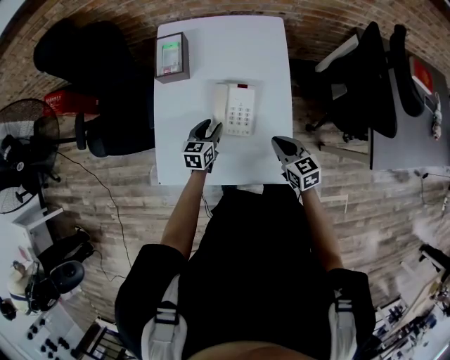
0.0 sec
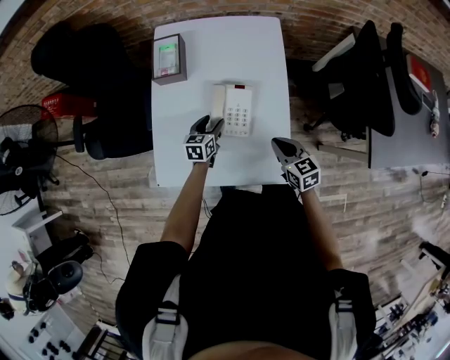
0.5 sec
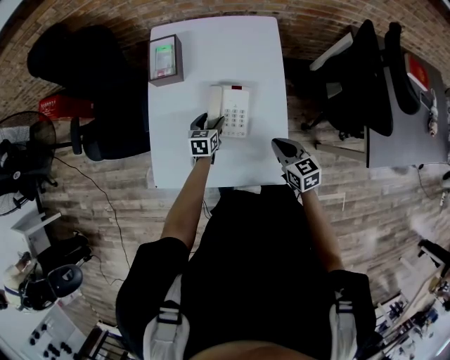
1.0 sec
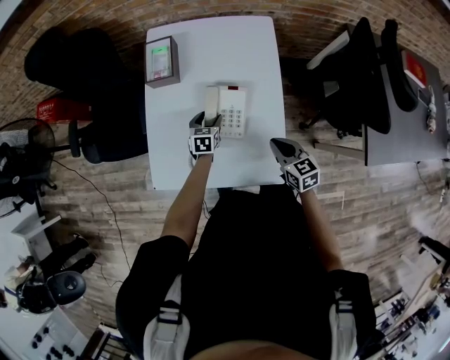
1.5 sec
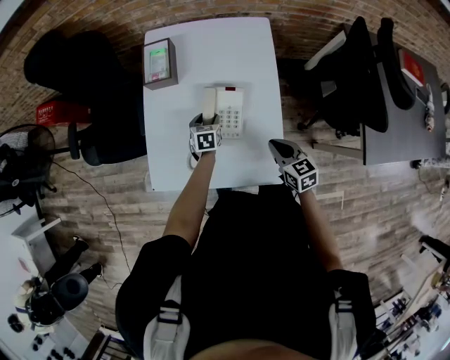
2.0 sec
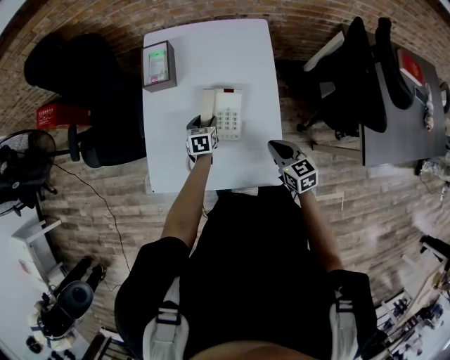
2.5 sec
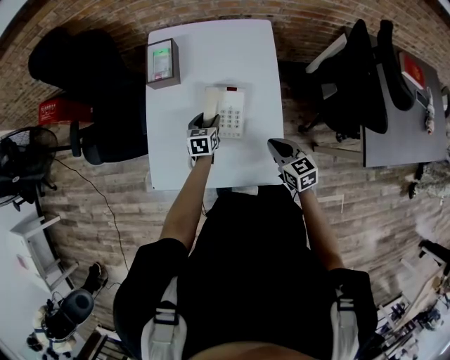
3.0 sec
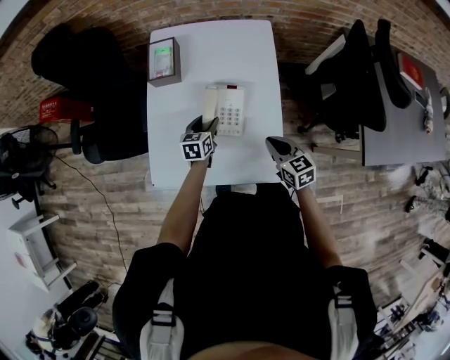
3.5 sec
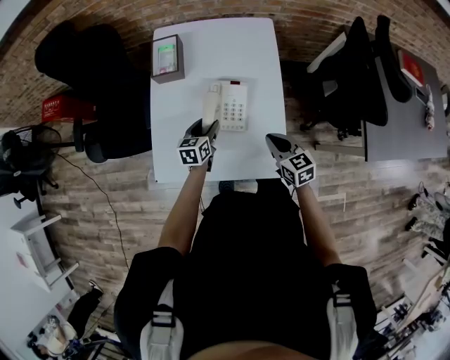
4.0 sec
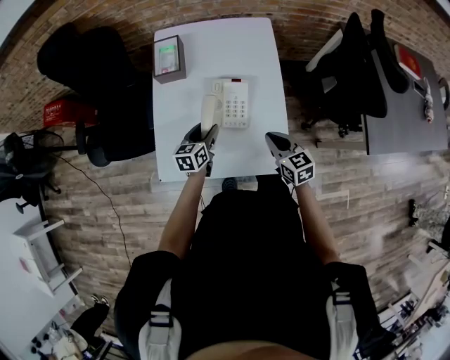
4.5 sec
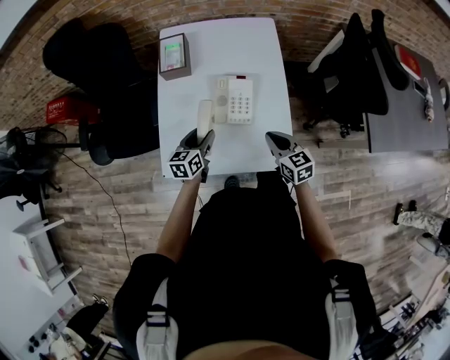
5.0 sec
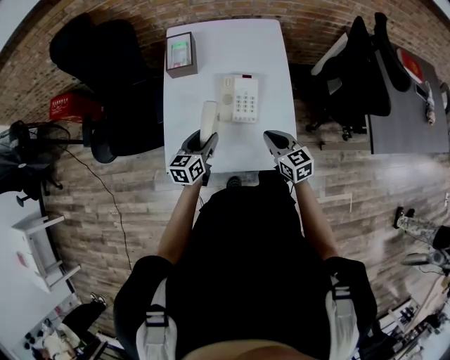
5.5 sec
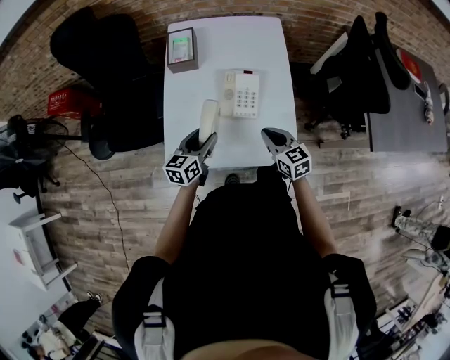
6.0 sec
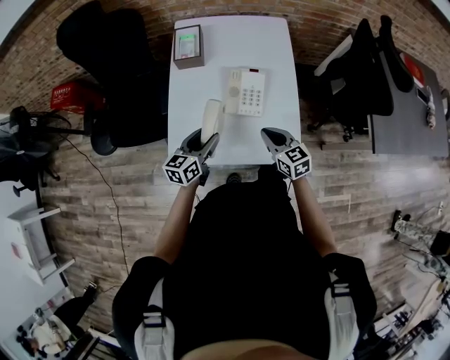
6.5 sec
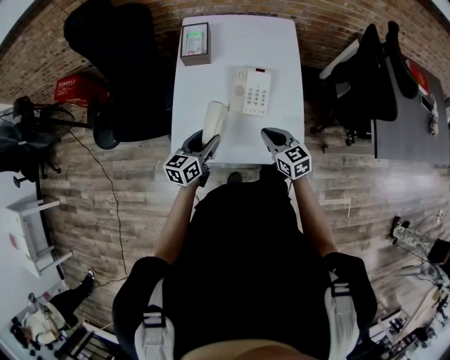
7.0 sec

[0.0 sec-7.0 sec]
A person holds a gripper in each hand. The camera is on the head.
0.0 sec to 2.0 sec: The left gripper is displaced downward by about 5 cm, and swivels approximately 20 degrees.
2.0 sec to 3.5 sec: The left gripper is displaced upward by some 5 cm.
3.5 sec to 5.0 sec: The left gripper shifts roughly 15 cm backward, to the left and upward. Meanwhile the right gripper is displaced to the left by some 5 cm.
5.0 sec to 7.0 sec: The left gripper travels backward by about 5 cm. Meanwhile the right gripper moves to the left, some 5 cm.

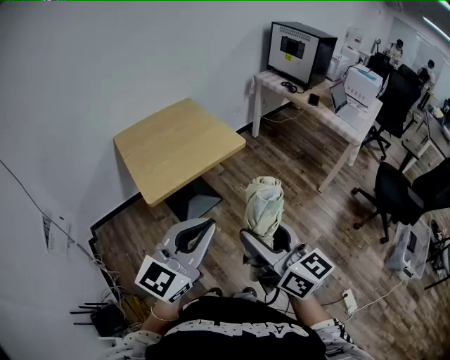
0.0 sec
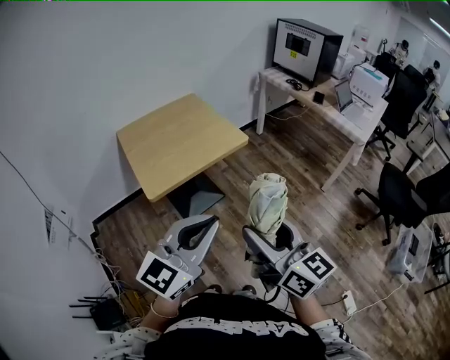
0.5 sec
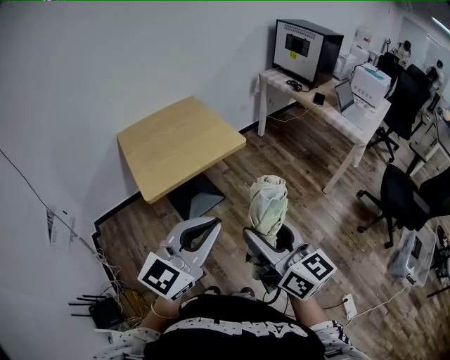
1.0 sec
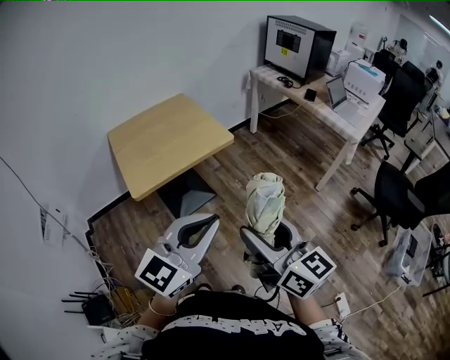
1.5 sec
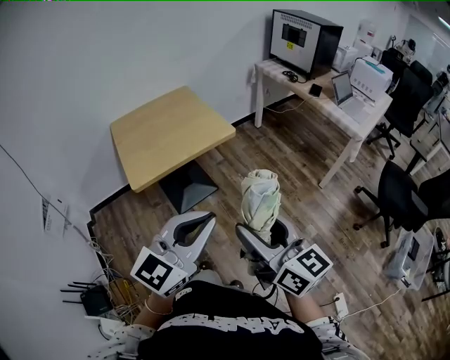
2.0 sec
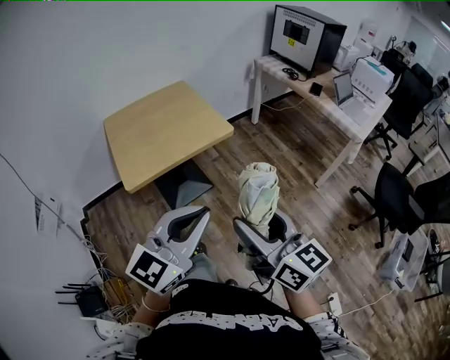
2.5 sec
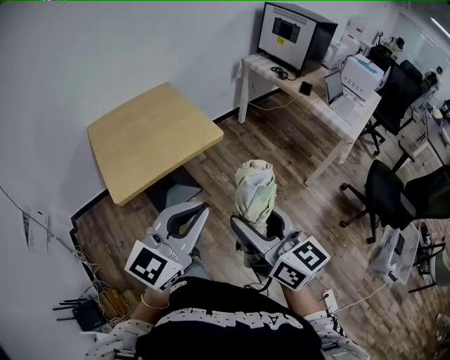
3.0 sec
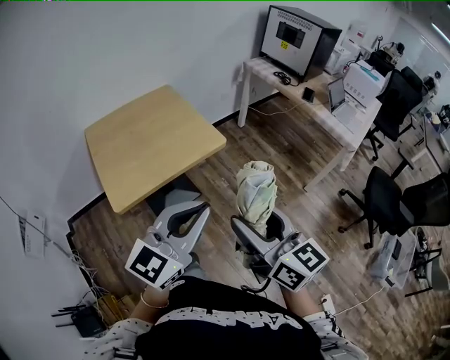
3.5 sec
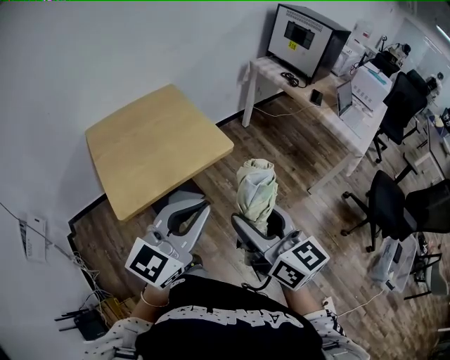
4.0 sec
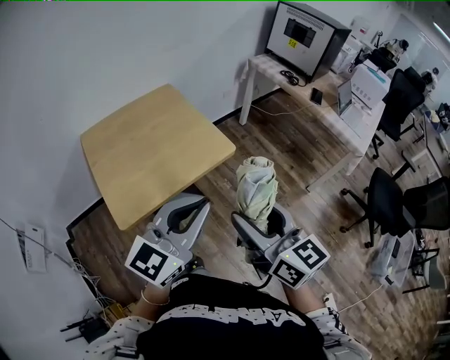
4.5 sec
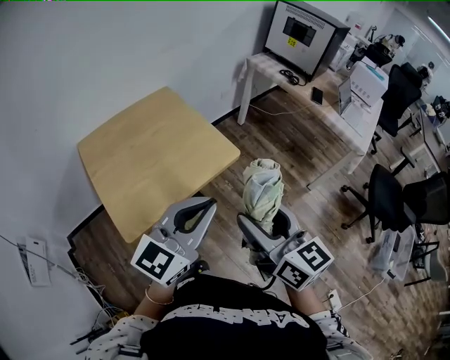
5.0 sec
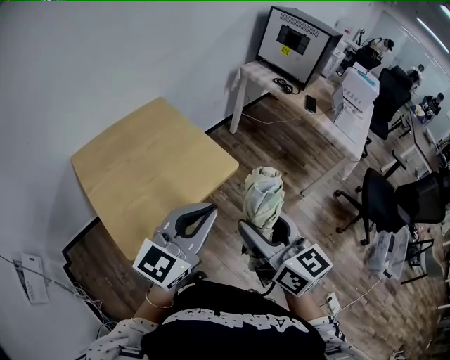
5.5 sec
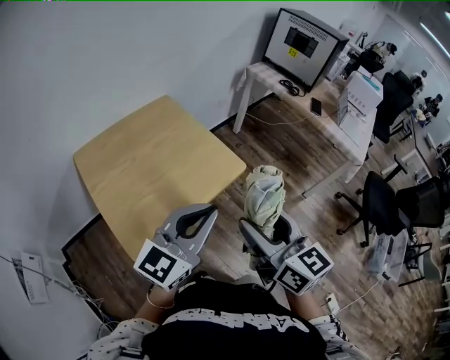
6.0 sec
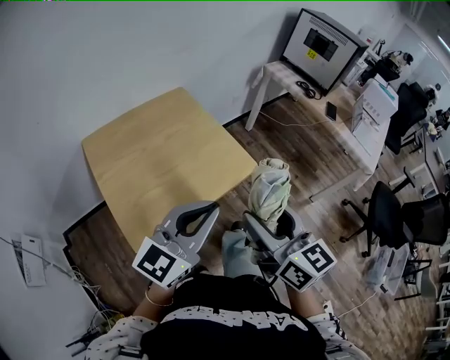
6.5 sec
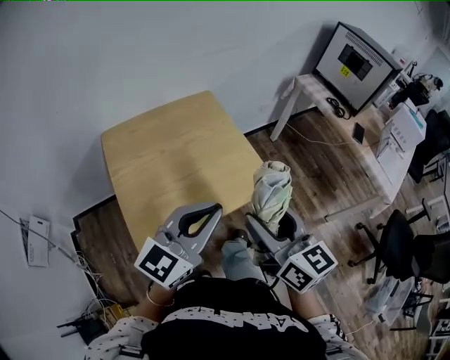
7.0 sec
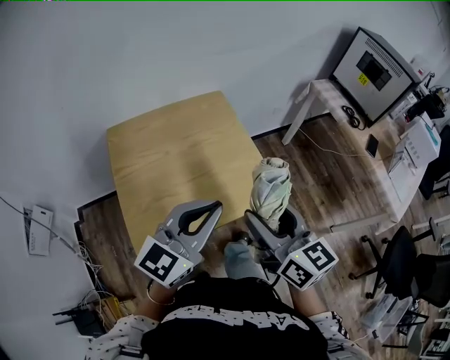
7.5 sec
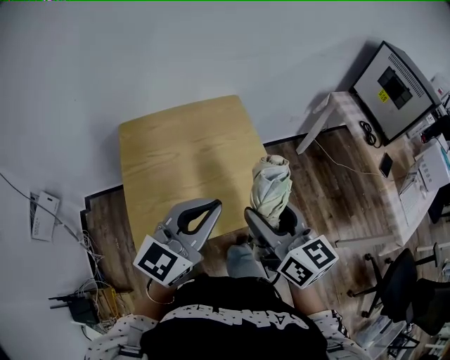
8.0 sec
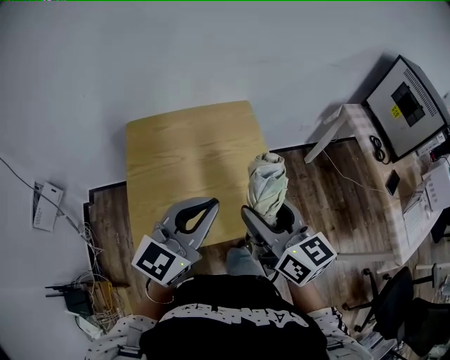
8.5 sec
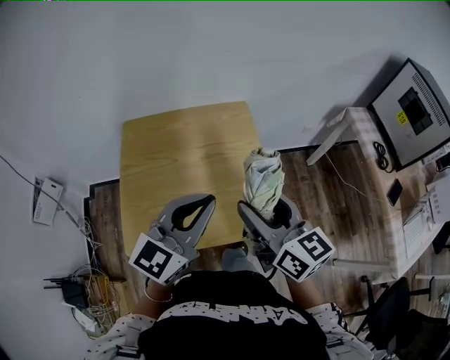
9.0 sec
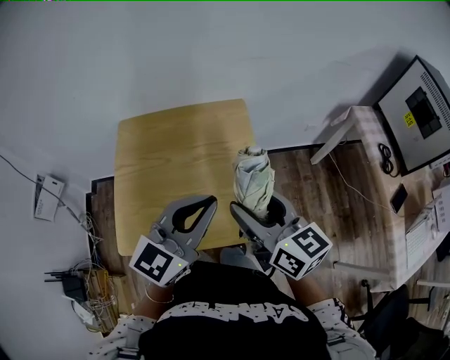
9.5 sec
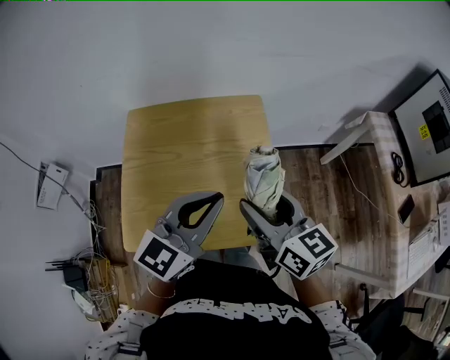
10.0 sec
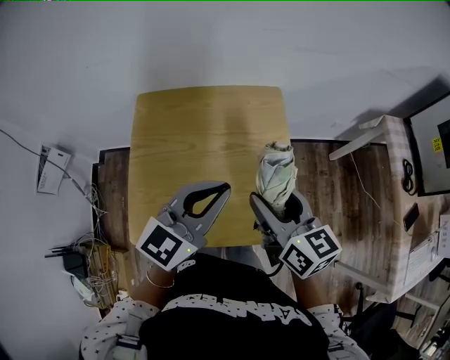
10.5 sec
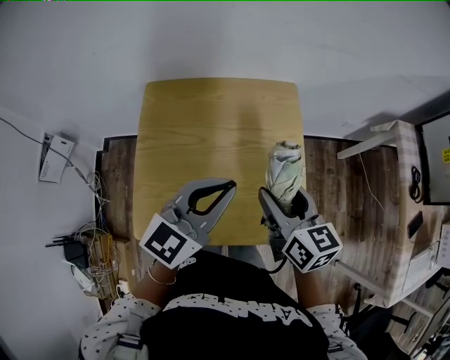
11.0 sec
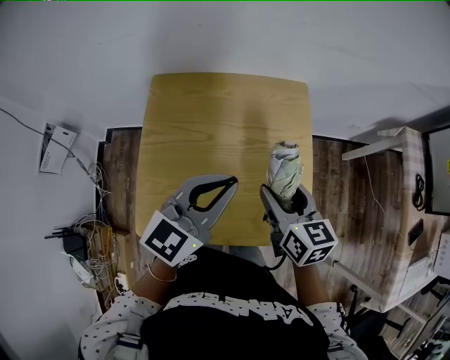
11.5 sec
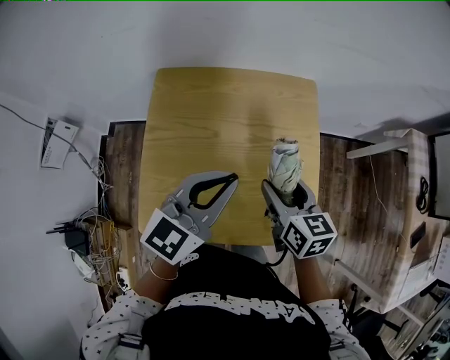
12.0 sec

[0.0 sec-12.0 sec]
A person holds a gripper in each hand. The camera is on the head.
0.0 sec to 2.0 sec: Both grippers move to the right, some 10 cm.
2.0 sec to 4.0 sec: Both grippers move forward, about 20 cm.
4.0 sec to 6.0 sec: The right gripper travels to the left and forward by about 15 cm. Meanwhile the left gripper goes approximately 15 cm forward and to the left.
6.0 sec to 8.0 sec: The two grippers go roughly 15 cm forward. The left gripper swivels roughly 20 degrees. The right gripper changes its angle by roughly 20 degrees.
8.0 sec to 10.0 sec: The left gripper moves forward and to the right, some 10 cm, while the right gripper heads forward, covering some 10 cm.
10.0 sec to 12.0 sec: The left gripper moves to the left, forward and downward, some 15 cm. The right gripper travels downward, to the left and forward by roughly 15 cm.

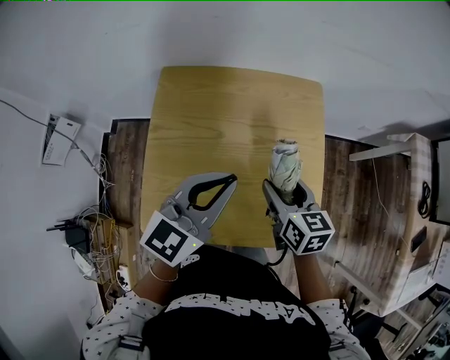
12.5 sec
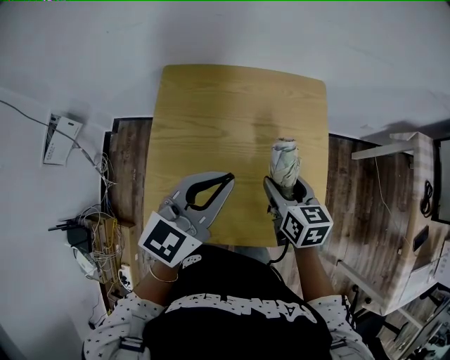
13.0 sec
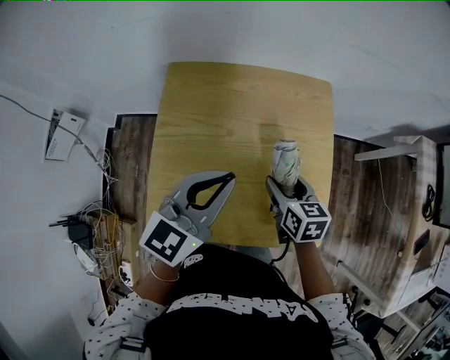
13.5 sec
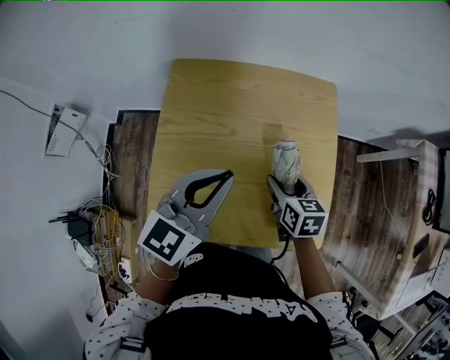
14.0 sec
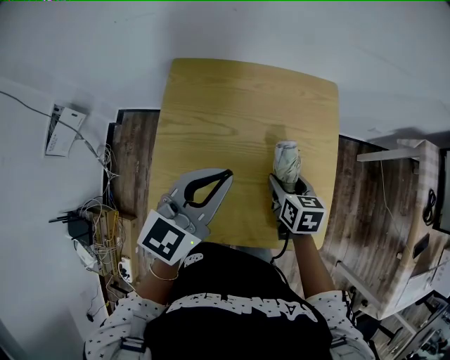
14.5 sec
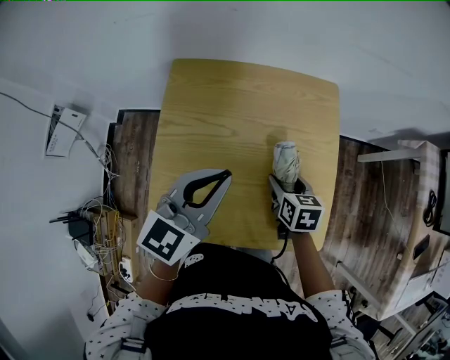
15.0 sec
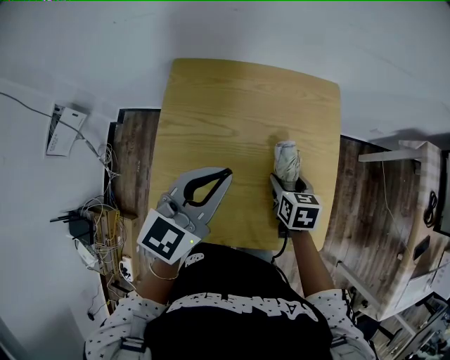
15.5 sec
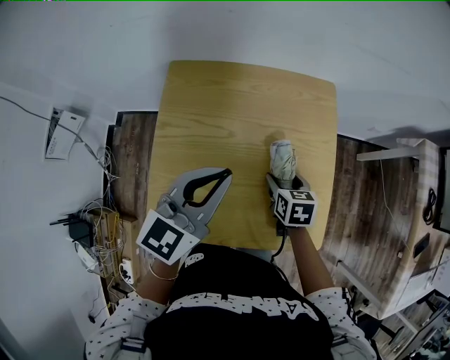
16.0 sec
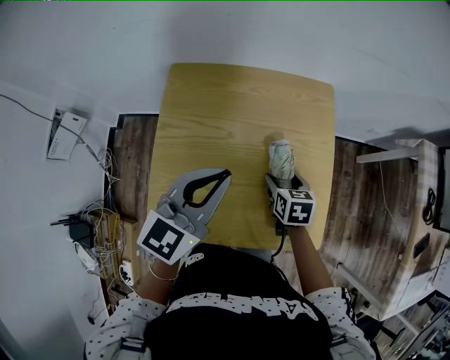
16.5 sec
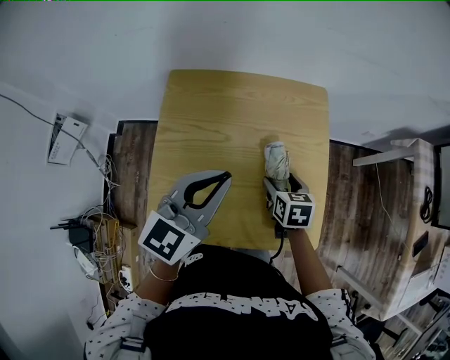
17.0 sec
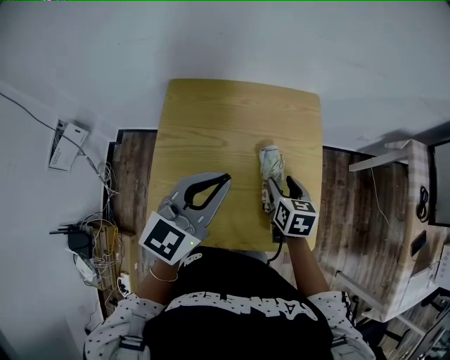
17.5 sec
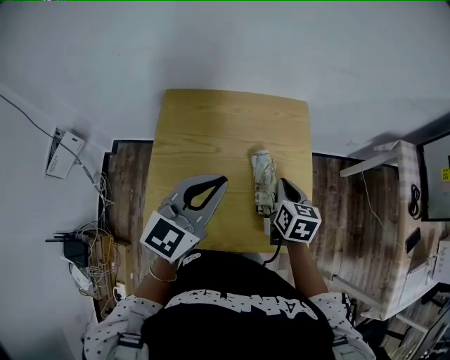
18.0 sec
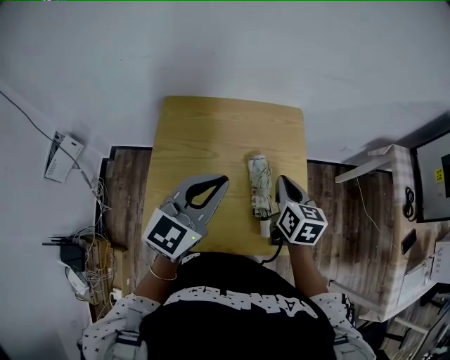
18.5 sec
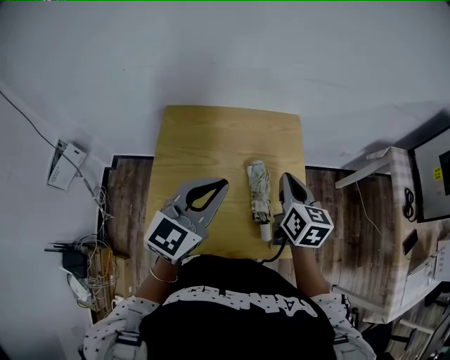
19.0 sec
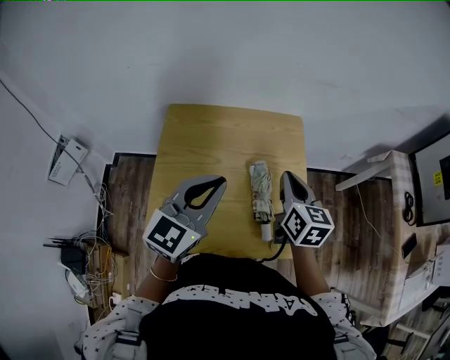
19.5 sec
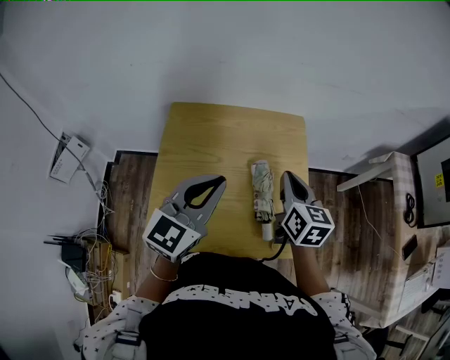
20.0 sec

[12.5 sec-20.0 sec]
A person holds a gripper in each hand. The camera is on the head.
12.5 sec to 14.5 sec: The right gripper heads downward, covering approximately 10 cm.
14.5 sec to 16.5 sec: The grippers move only a little.
16.5 sec to 18.0 sec: The right gripper travels upward by some 10 cm, and closes.
18.0 sec to 20.0 sec: The right gripper heads upward, covering roughly 10 cm.
